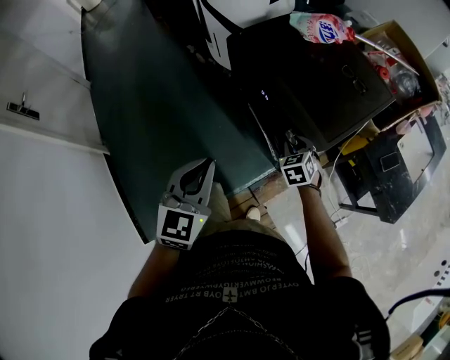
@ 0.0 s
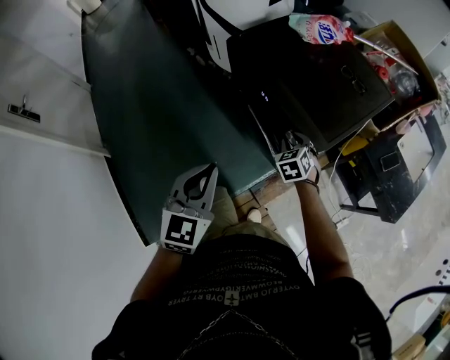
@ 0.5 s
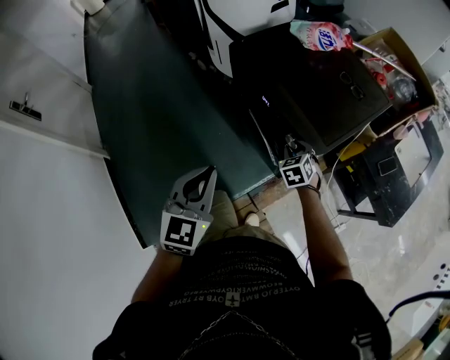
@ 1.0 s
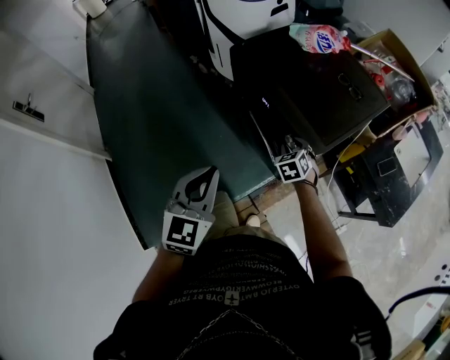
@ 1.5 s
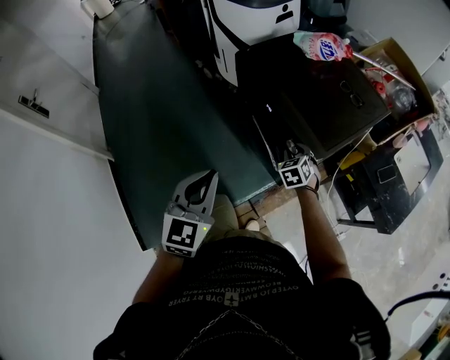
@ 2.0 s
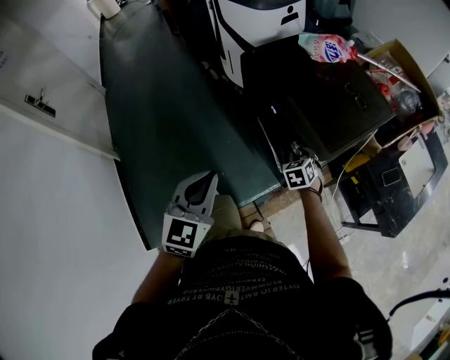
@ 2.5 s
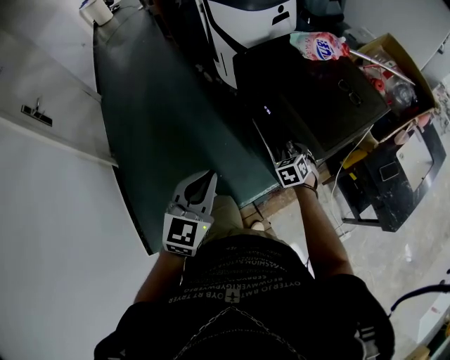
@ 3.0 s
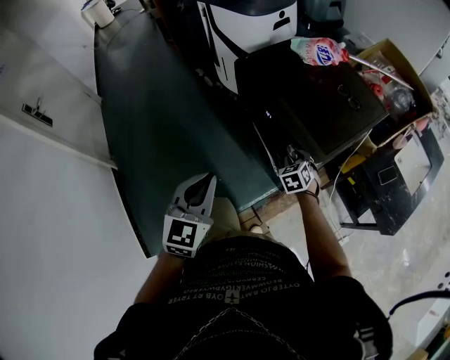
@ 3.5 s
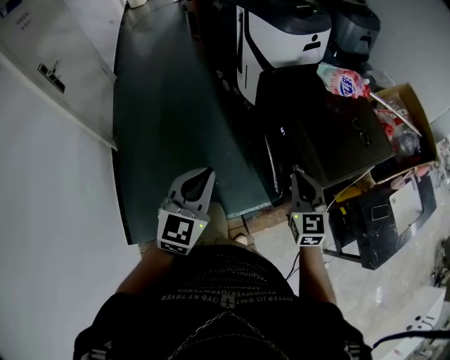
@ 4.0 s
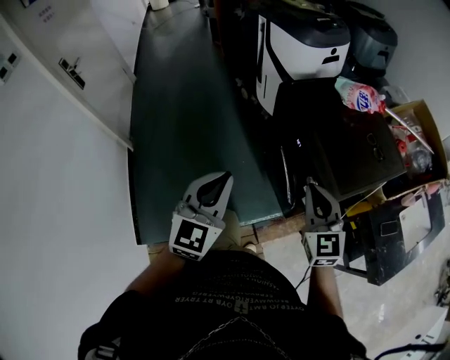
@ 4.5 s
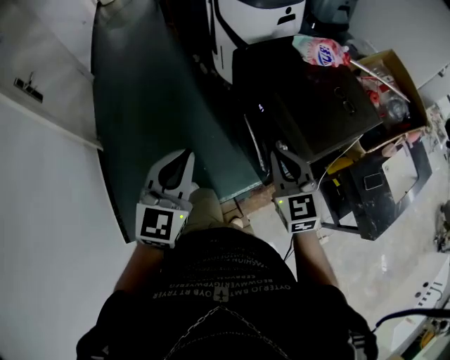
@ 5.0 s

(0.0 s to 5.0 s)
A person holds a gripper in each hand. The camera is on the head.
0.0 s - 2.5 s: The left gripper shifts by approximately 5 cm.
2.5 s - 5.0 s: The right gripper heads upward, covering about 25 cm, tips its fingers upward by about 30 degrees, and closes, while the left gripper is displaced upward by some 5 cm.

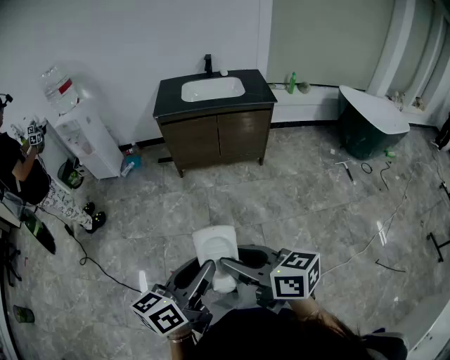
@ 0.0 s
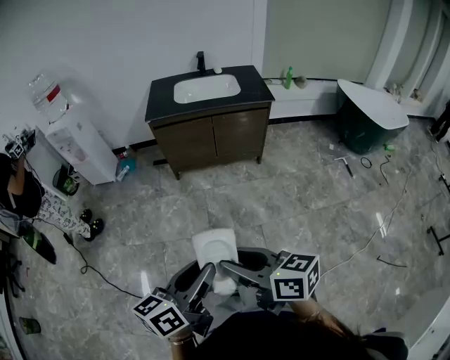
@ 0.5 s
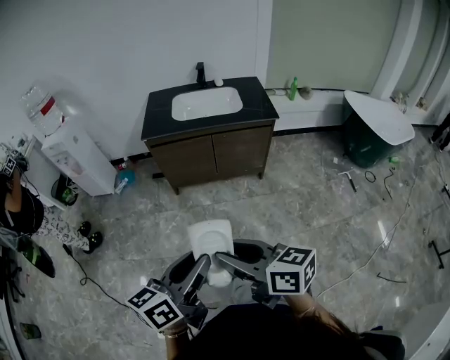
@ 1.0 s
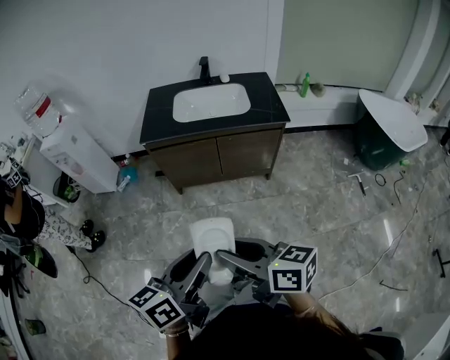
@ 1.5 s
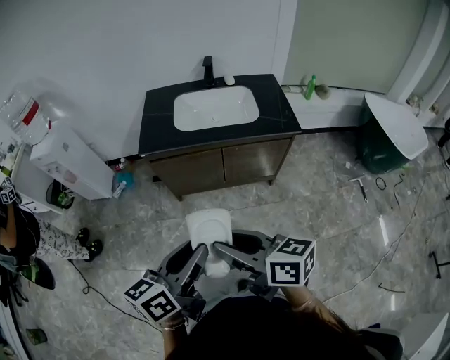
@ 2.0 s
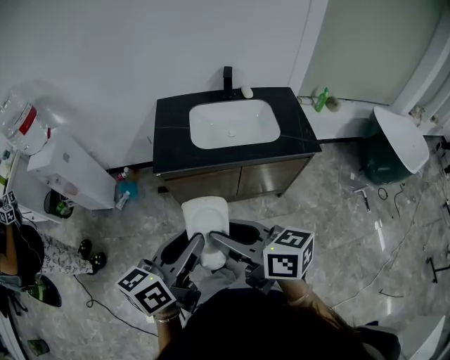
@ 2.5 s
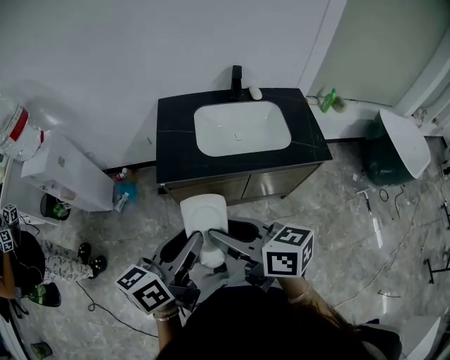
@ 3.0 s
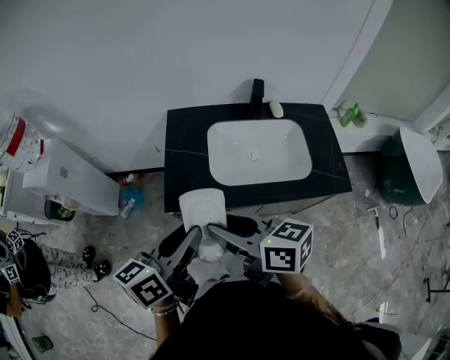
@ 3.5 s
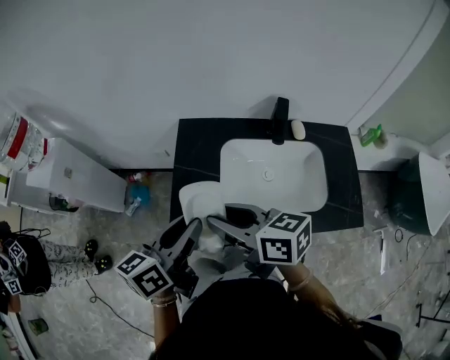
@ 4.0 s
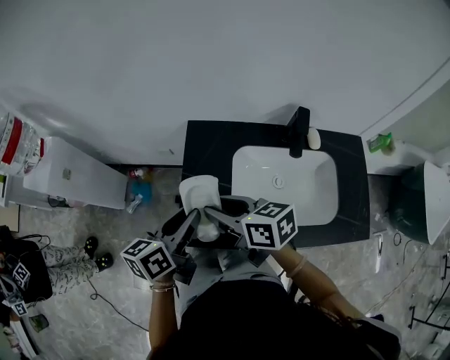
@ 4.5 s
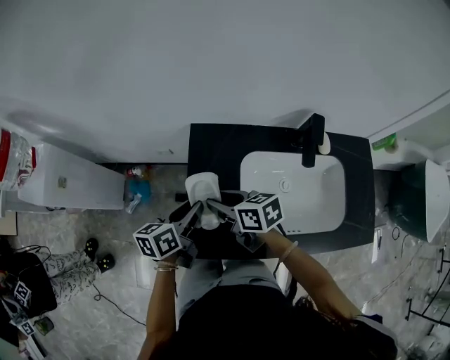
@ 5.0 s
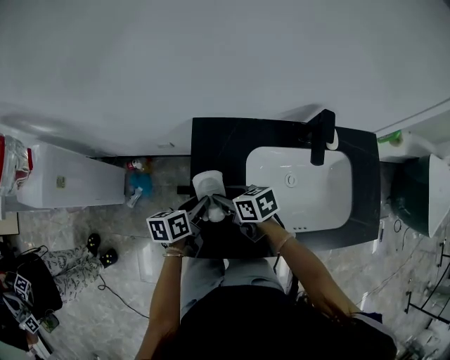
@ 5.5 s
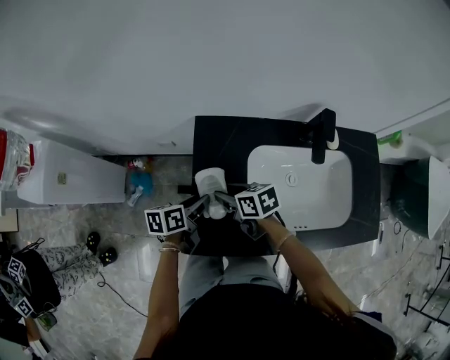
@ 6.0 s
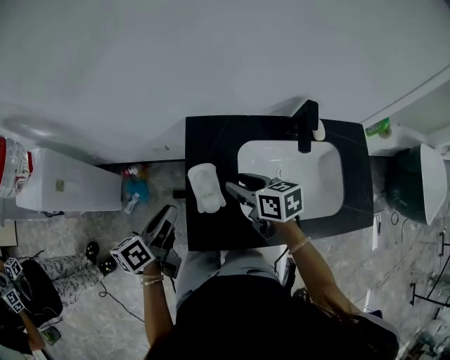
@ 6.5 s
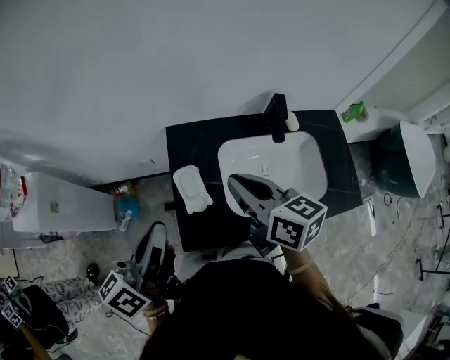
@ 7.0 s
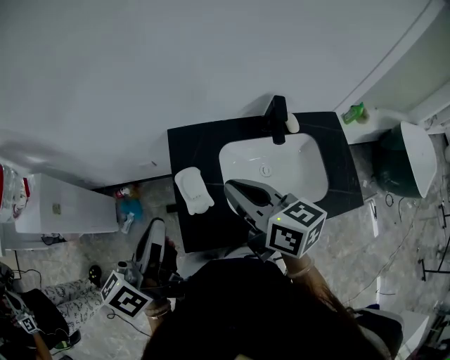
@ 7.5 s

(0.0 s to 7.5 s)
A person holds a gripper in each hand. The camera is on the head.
0.0 s - 2.0 s: The two grippers travel together, forward, roughly 40 cm.
2.0 s - 4.0 s: The pair of grippers is taken forward, roughly 50 cm.
4.0 s - 5.5 s: Both grippers travel together downward and forward, about 30 cm. The right gripper turns by about 20 degrees; the left gripper turns by about 30 degrees.
5.5 s - 7.5 s: The two grippers go roughly 30 cm upward. The right gripper changes its angle by about 40 degrees, and closes, while the left gripper angles its fingers upward, by approximately 40 degrees, and closes up.

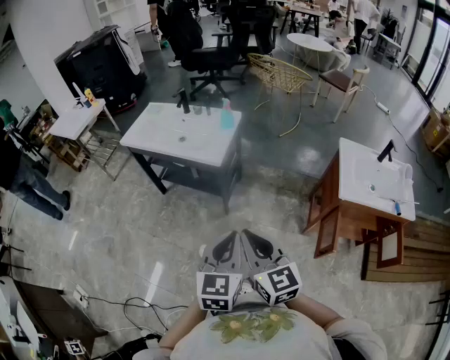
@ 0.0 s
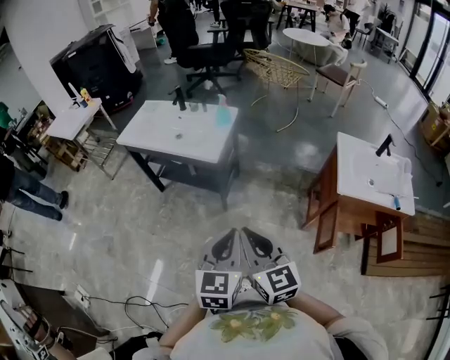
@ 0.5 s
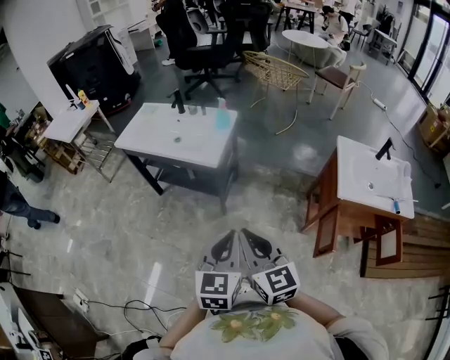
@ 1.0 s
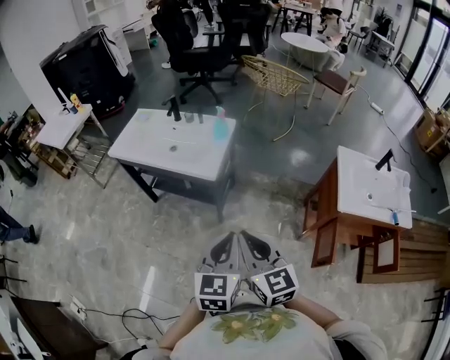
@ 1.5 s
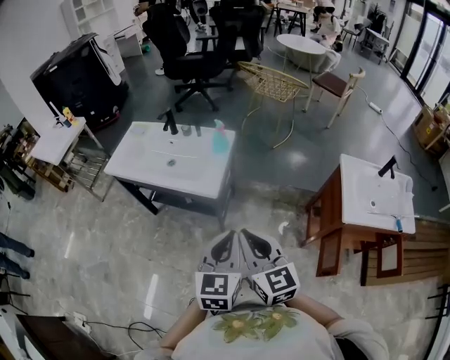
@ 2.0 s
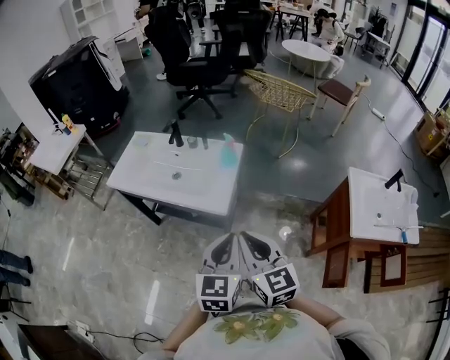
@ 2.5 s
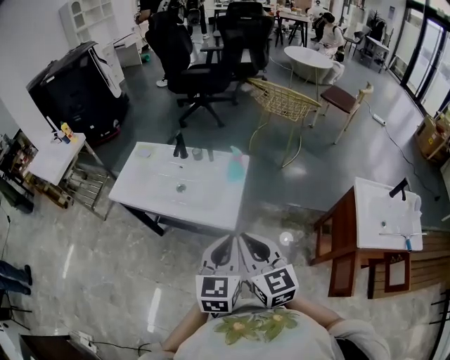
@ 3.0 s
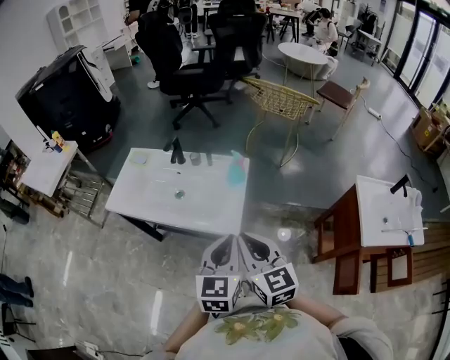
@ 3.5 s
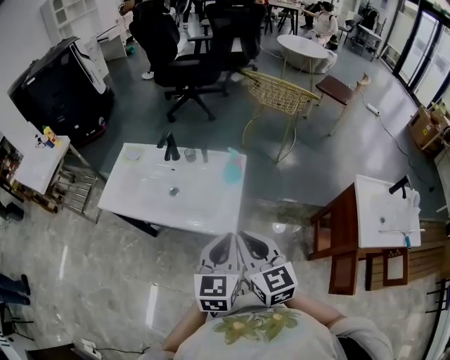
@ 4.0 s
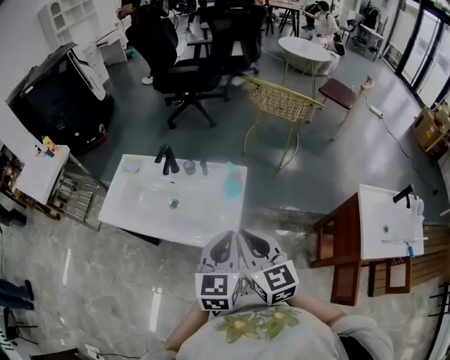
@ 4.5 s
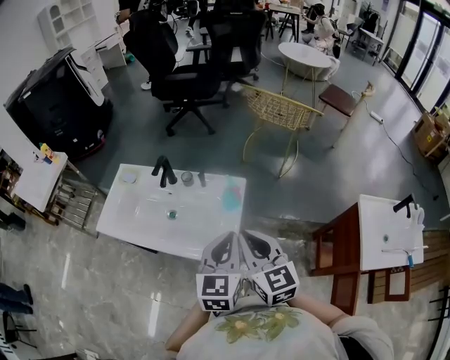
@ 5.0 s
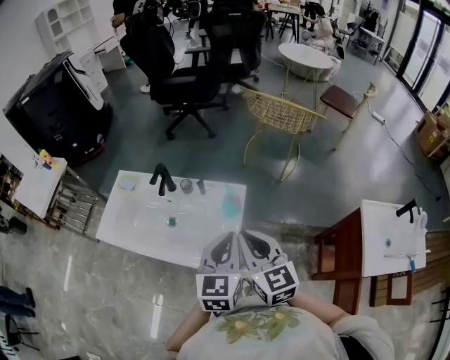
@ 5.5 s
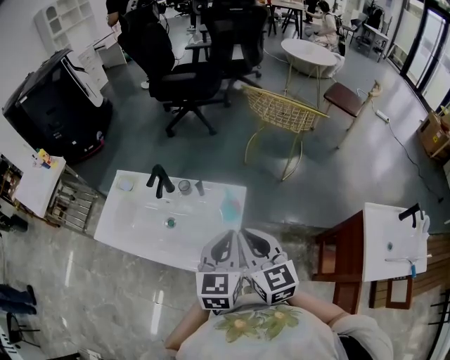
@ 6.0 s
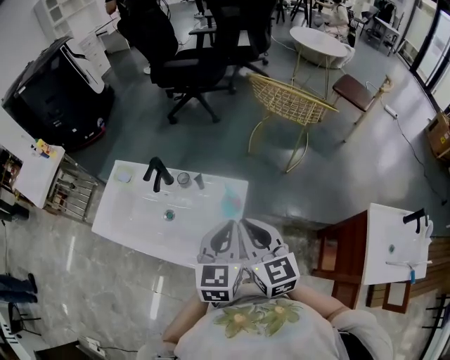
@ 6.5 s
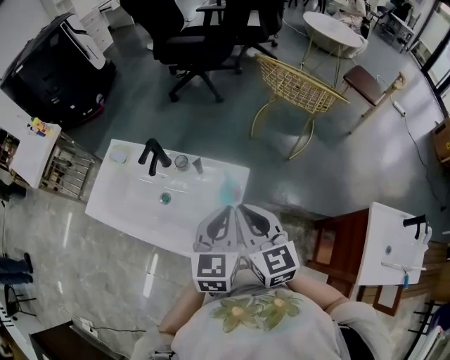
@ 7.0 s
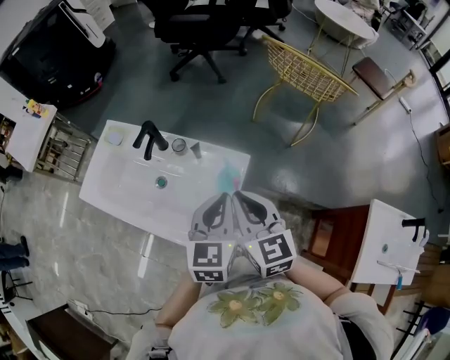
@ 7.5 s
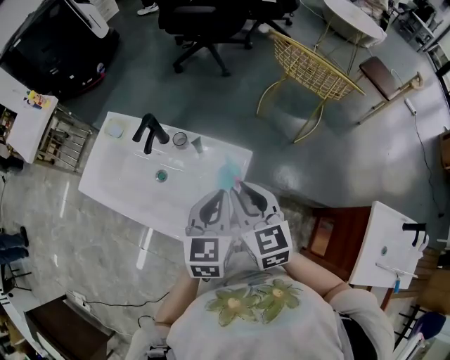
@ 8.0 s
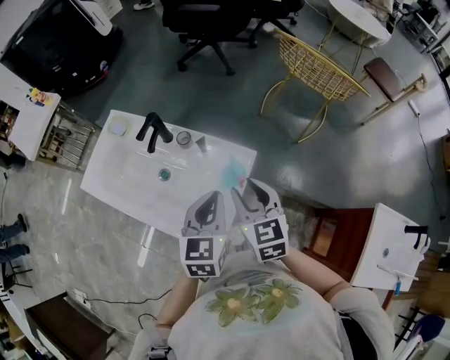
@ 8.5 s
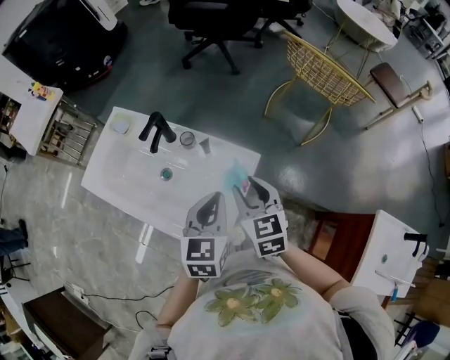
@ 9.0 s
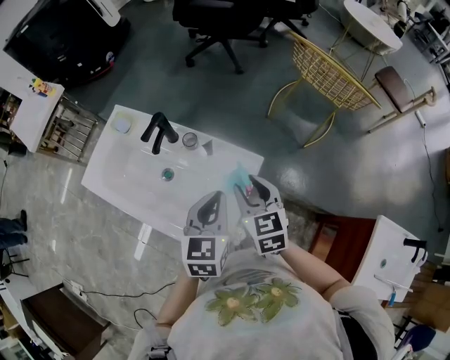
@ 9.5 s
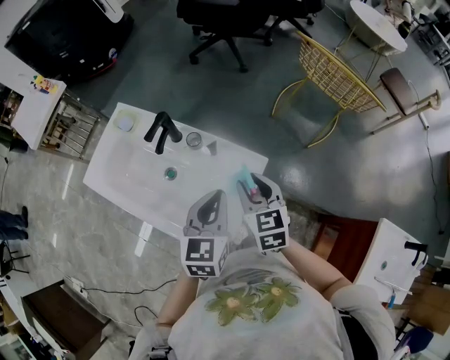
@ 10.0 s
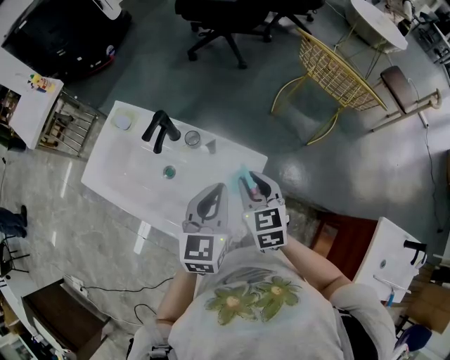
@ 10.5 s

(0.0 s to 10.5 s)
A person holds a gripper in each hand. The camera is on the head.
0.0 s - 2.0 s: Both grippers move forward, about 15 cm.
2.0 s - 4.0 s: Both grippers move forward and to the left, approximately 20 cm.
4.0 s - 6.5 s: Both grippers move forward, some 20 cm.
6.5 s - 8.5 s: The left gripper goes some 5 cm downward. The right gripper goes some 10 cm downward and forward, and opens.
8.5 s - 10.5 s: The right gripper travels forward by about 5 cm.

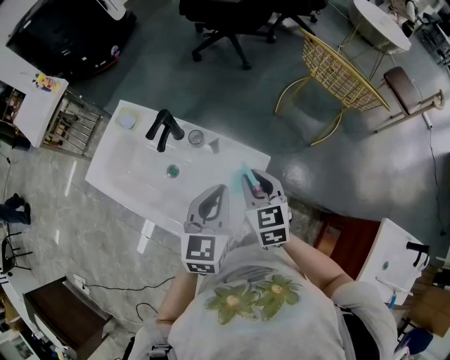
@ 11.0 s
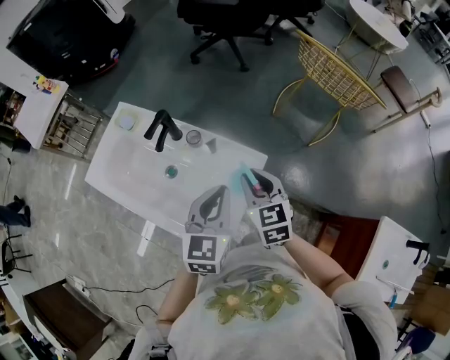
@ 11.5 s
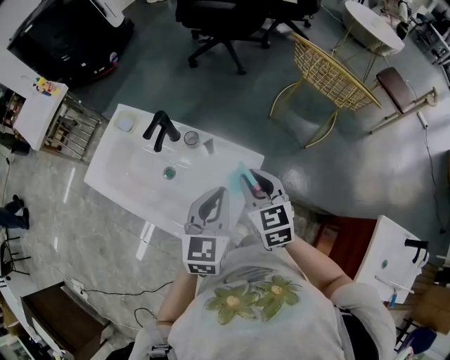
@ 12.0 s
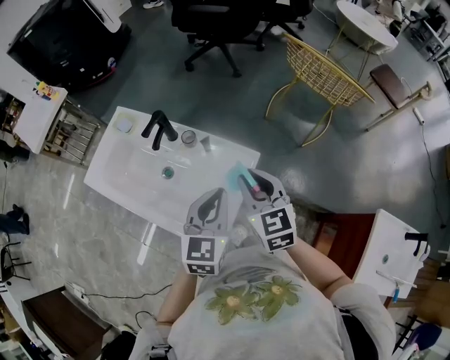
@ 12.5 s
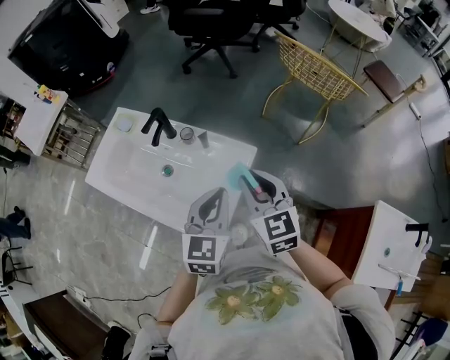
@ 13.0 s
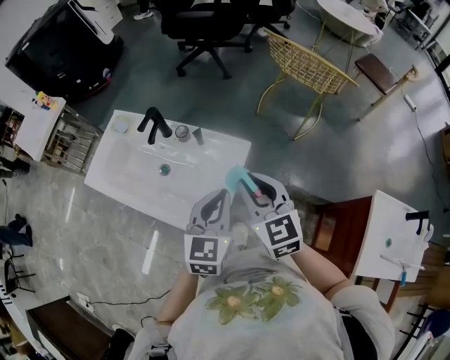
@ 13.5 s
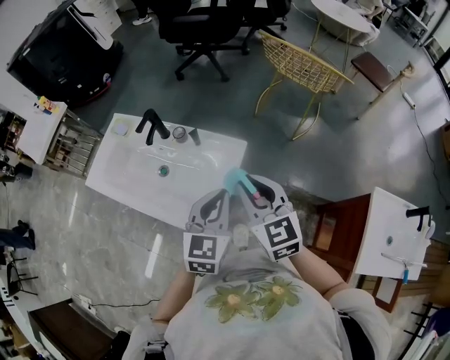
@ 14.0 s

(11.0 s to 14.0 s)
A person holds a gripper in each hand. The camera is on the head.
11.0 s - 12.5 s: The right gripper moves upward, some 5 cm.
12.5 s - 14.0 s: The grippers both shift backward by about 5 cm.
